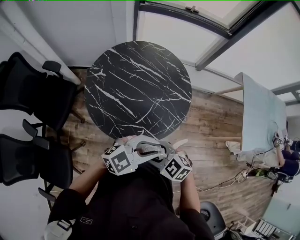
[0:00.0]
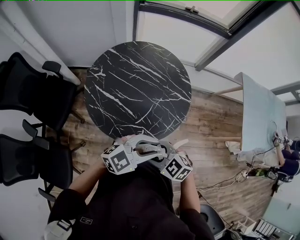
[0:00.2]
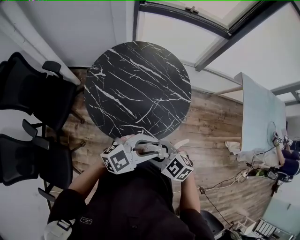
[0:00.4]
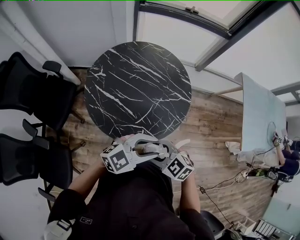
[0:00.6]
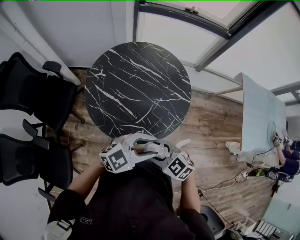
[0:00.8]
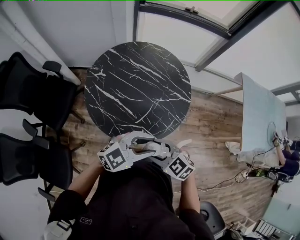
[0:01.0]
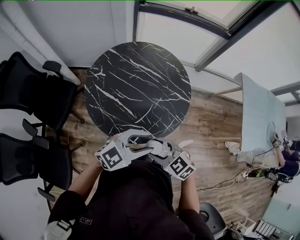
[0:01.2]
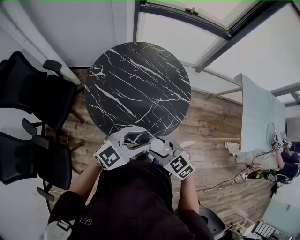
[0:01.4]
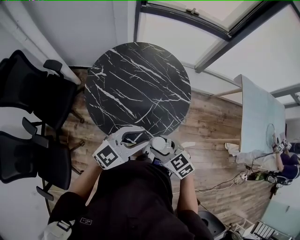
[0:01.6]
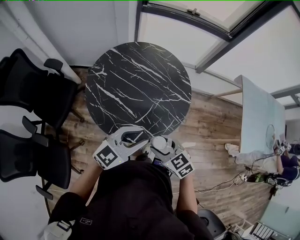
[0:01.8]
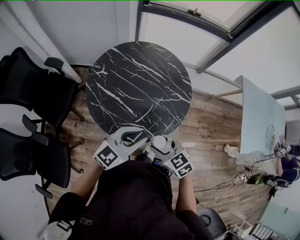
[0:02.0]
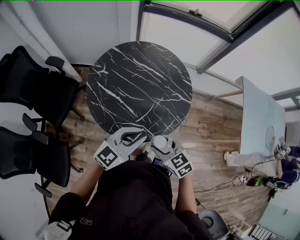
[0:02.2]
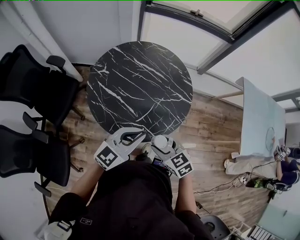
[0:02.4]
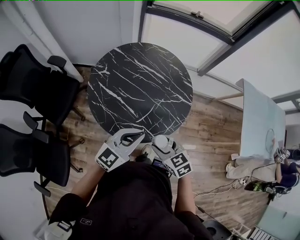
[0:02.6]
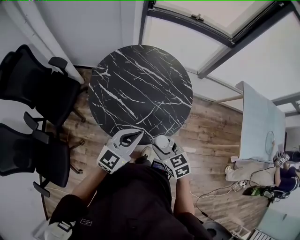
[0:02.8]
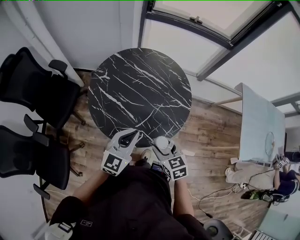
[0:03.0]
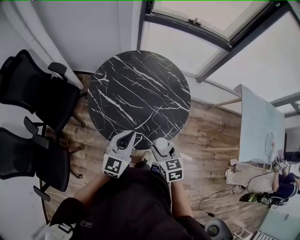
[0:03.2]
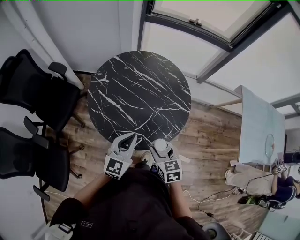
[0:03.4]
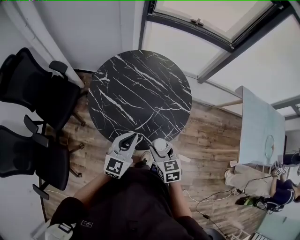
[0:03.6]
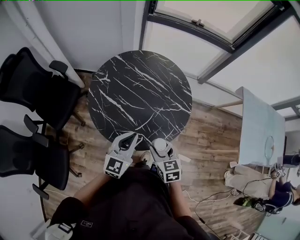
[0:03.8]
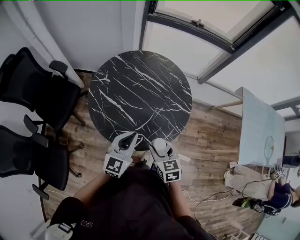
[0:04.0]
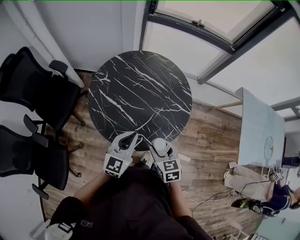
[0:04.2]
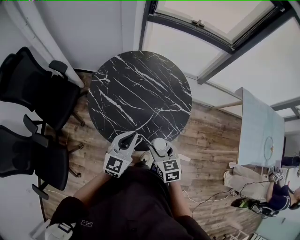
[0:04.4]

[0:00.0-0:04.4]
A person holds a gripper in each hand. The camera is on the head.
0:00.0 to 0:01.4: The left gripper moves some 5 cm.
0:01.4 to 0:03.0: The left gripper changes place by about 5 cm, rotates roughly 30 degrees, and closes; the right gripper swivels roughly 20 degrees.
0:03.0 to 0:04.4: The grippers move only a little.

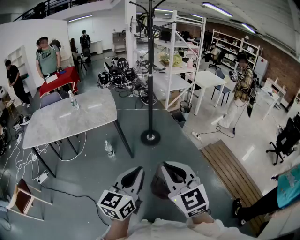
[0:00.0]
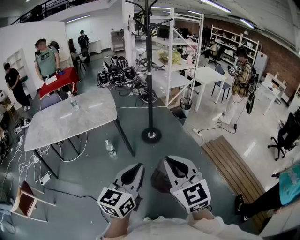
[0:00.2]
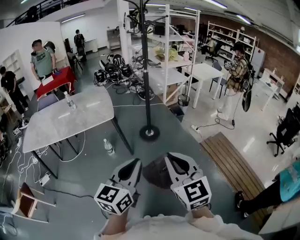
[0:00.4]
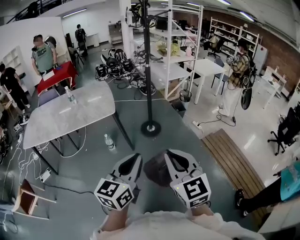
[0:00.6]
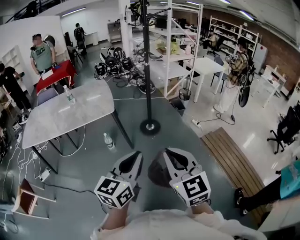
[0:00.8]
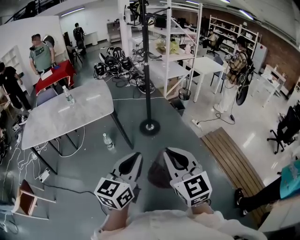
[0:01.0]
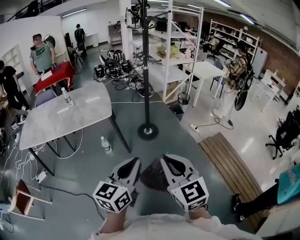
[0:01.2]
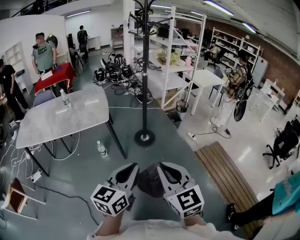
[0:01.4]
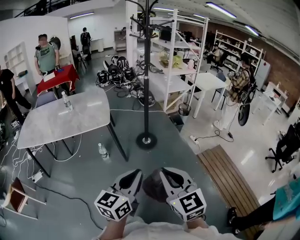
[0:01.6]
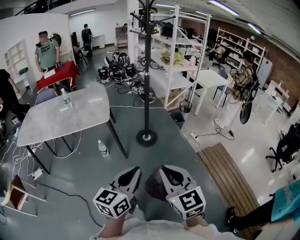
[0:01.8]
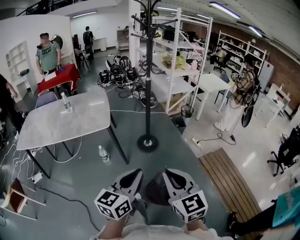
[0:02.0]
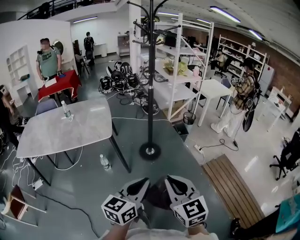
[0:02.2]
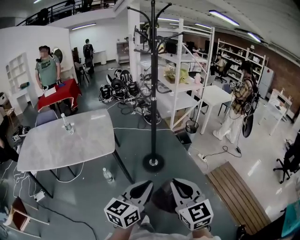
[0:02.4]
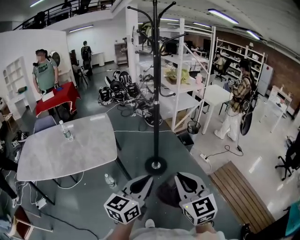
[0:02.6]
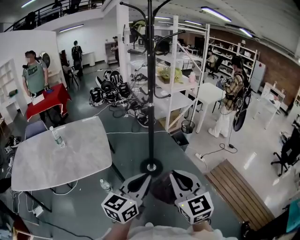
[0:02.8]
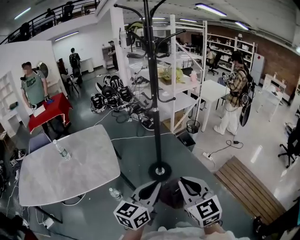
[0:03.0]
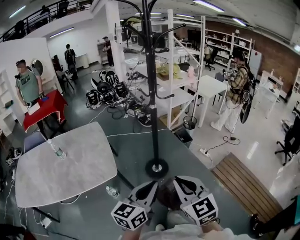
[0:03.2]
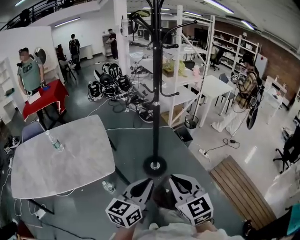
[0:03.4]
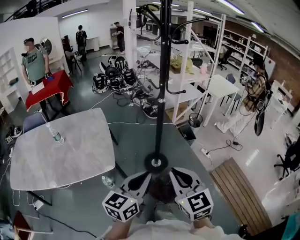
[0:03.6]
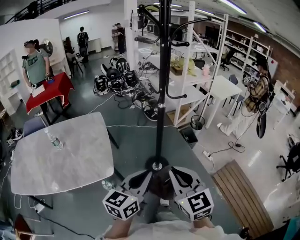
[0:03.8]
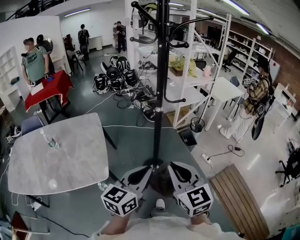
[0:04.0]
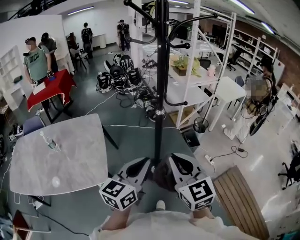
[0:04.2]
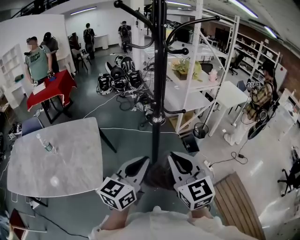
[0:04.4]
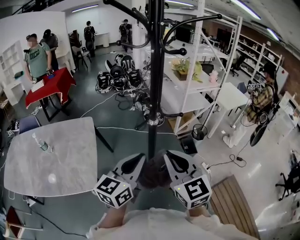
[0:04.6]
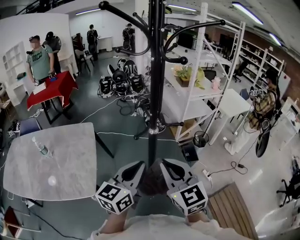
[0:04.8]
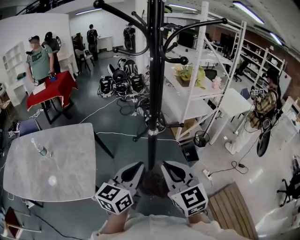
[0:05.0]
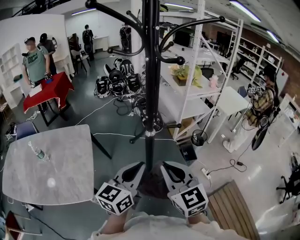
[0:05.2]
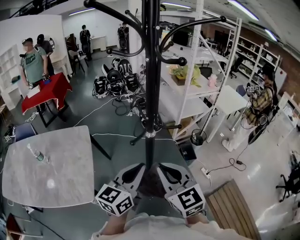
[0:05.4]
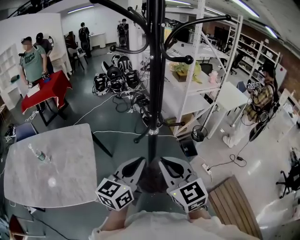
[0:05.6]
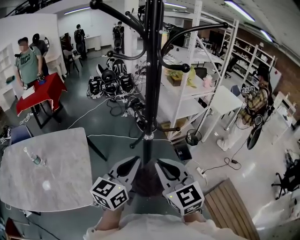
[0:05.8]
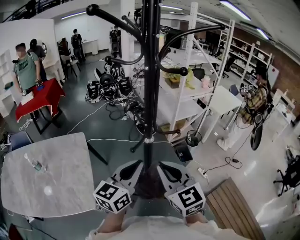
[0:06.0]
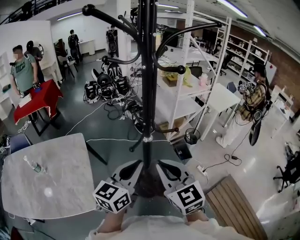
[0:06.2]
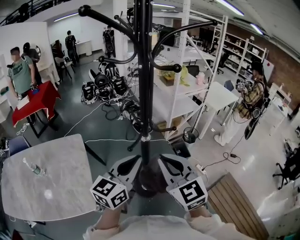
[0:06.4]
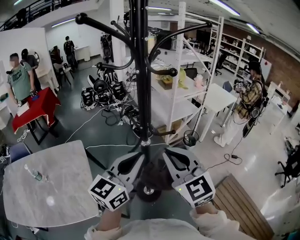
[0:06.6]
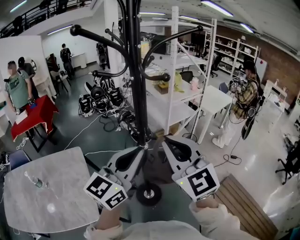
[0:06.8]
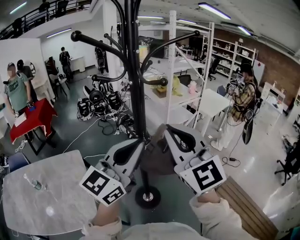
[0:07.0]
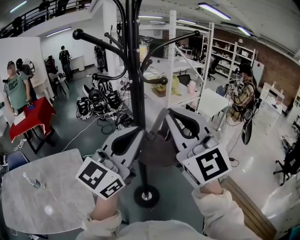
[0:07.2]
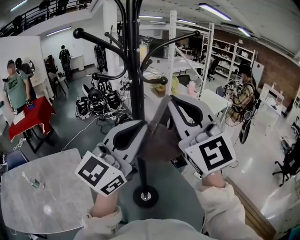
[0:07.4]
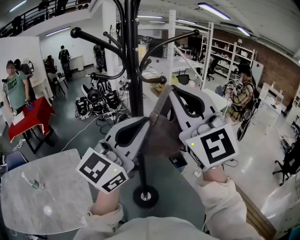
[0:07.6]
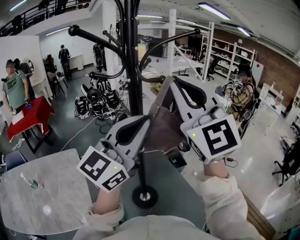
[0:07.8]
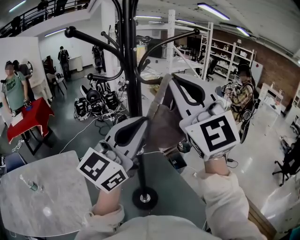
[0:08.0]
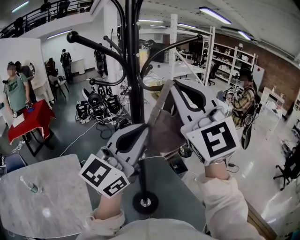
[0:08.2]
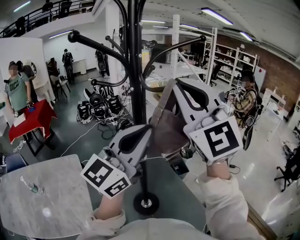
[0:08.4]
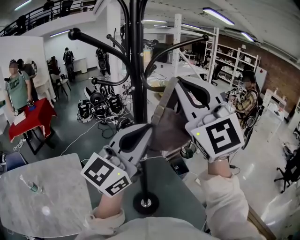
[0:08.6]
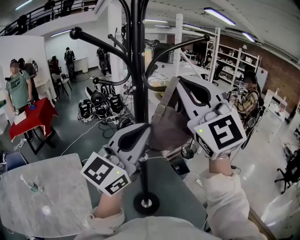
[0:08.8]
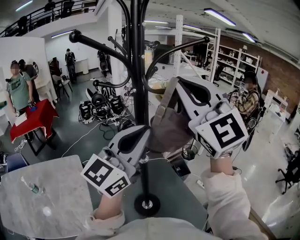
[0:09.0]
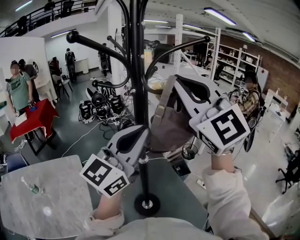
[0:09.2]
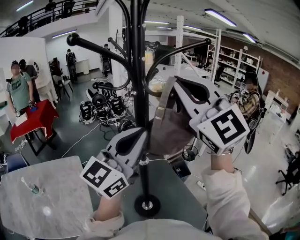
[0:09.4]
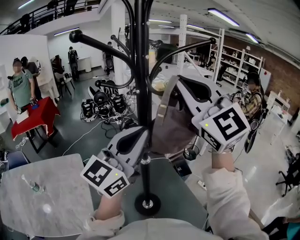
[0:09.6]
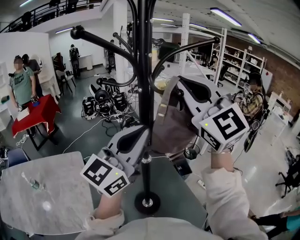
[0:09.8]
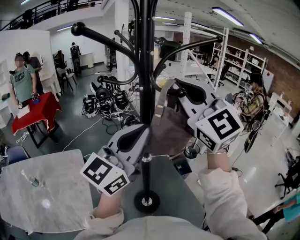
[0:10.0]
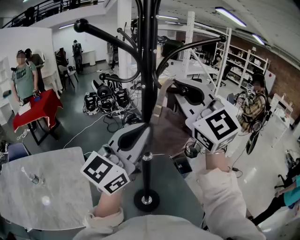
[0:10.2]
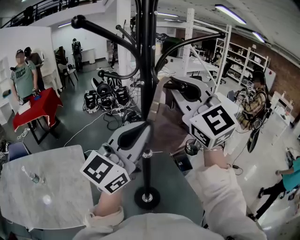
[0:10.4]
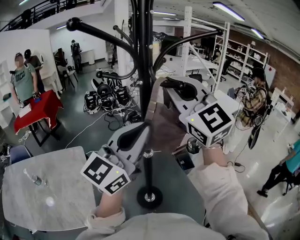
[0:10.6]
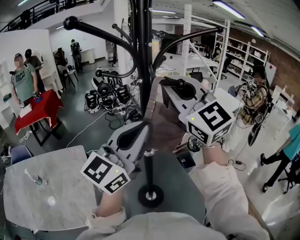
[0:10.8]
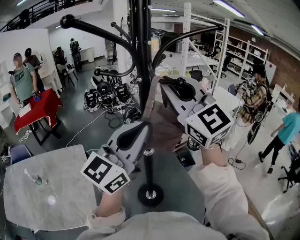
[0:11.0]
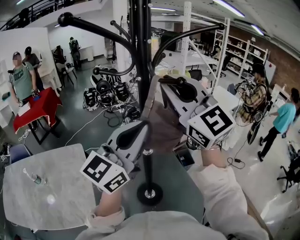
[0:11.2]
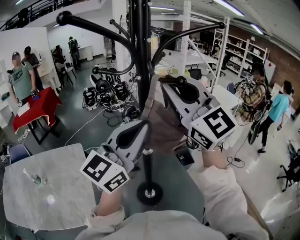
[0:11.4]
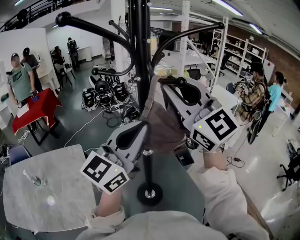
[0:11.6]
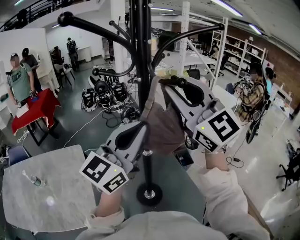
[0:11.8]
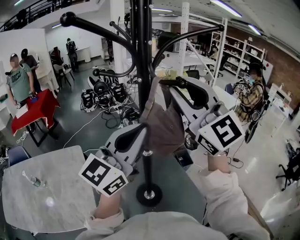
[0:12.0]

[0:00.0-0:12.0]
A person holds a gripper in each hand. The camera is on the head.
0:00.0 to 0:01.6: The grippers both shift forward and to the right by some 10 cm.
0:01.6 to 0:03.0: The two grippers go approximately 35 cm forward.
0:03.0 to 0:04.4: Both grippers move forward, roughly 30 cm.
0:04.4 to 0:06.0: Both grippers move forward, approximately 10 cm.
0:06.0 to 0:07.6: Both grippers move upward, some 25 cm. The right gripper swivels about 40 degrees, while the left gripper rotates about 30 degrees.
0:07.6 to 0:09.0: The right gripper is displaced forward by roughly 5 cm. The left gripper ends up approximately 5 cm from where it was.
0:09.0 to 0:10.4: The right gripper shifts by roughly 5 cm.
0:10.4 to 0:12.0: The grippers move only a little.

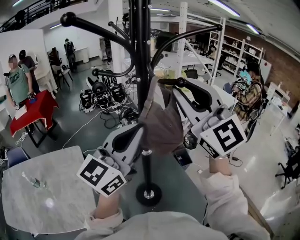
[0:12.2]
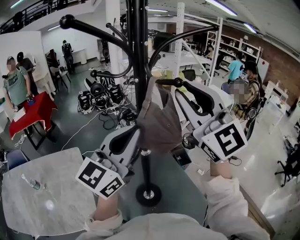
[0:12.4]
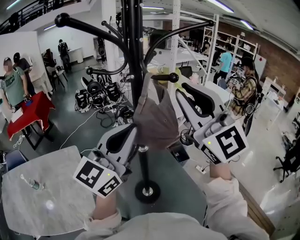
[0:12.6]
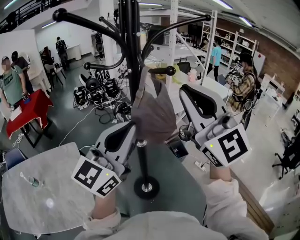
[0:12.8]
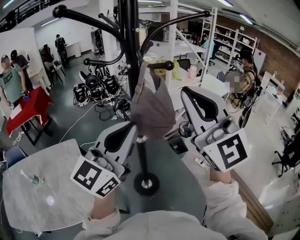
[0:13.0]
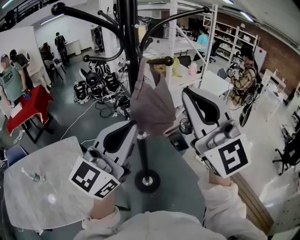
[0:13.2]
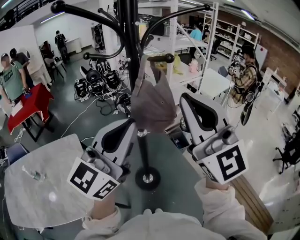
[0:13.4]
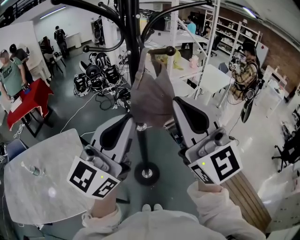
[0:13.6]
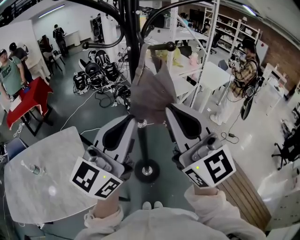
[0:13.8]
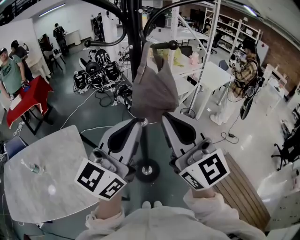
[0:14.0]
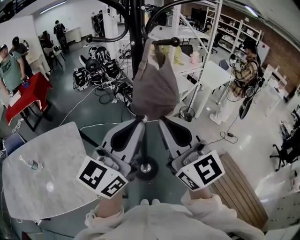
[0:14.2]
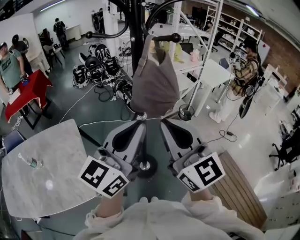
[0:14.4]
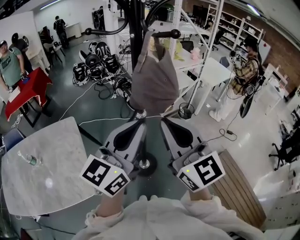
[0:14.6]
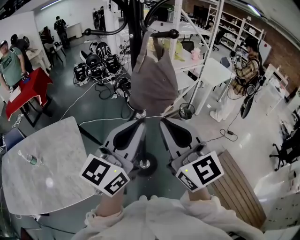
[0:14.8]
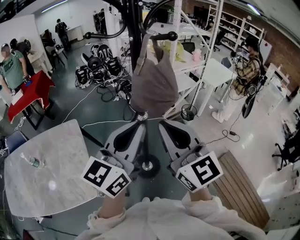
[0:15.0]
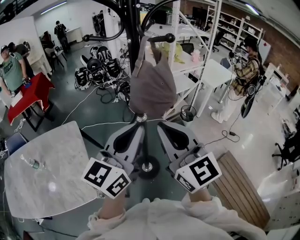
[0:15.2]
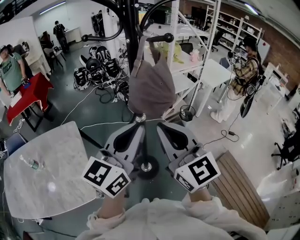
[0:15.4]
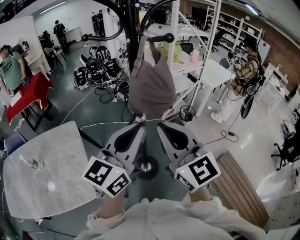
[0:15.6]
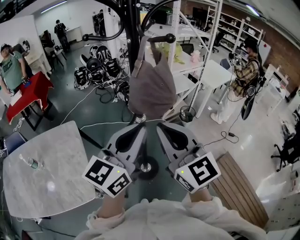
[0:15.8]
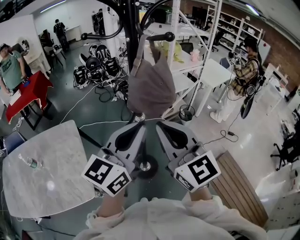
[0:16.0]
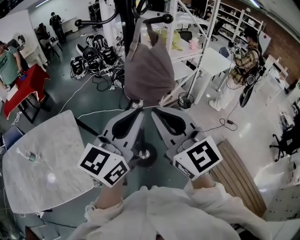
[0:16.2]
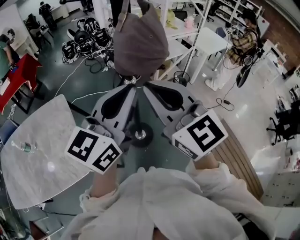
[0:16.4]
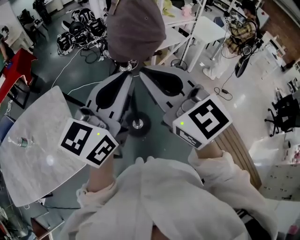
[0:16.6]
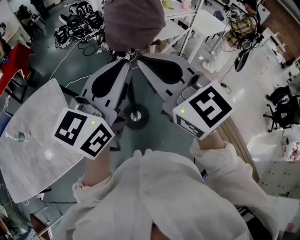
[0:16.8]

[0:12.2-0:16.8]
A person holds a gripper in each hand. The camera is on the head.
0:12.2 to 0:13.8: The right gripper heads backward and downward, covering approximately 15 cm, and swivels some 20 degrees, while the left gripper goes about 5 cm backward.
0:13.8 to 0:15.2: The grippers both shift downward by roughly 5 cm.
0:15.2 to 0:16.8: There are only small adjustments of the grippers.

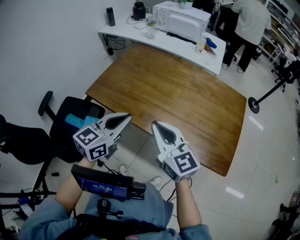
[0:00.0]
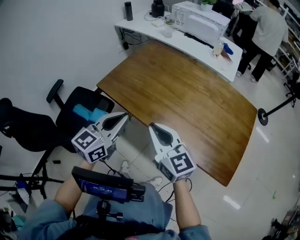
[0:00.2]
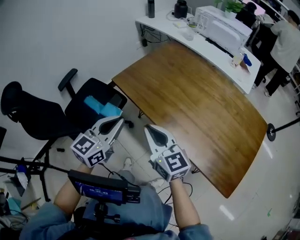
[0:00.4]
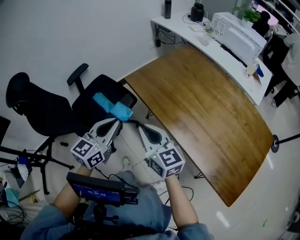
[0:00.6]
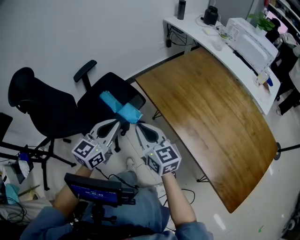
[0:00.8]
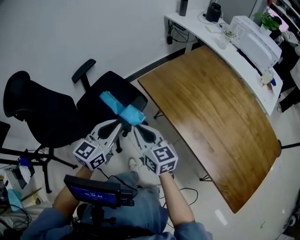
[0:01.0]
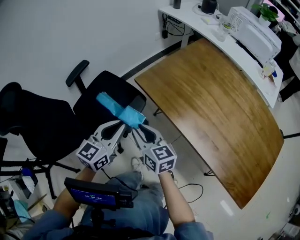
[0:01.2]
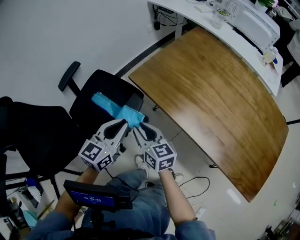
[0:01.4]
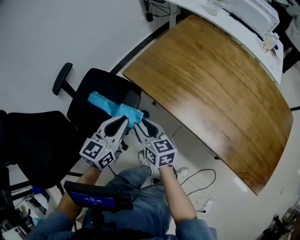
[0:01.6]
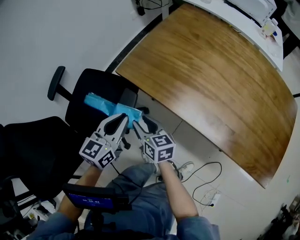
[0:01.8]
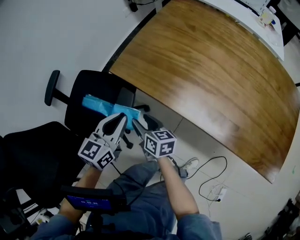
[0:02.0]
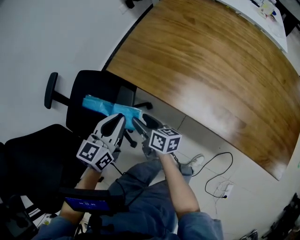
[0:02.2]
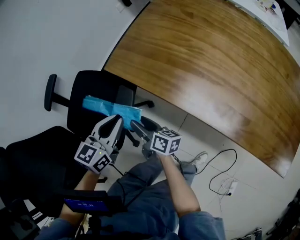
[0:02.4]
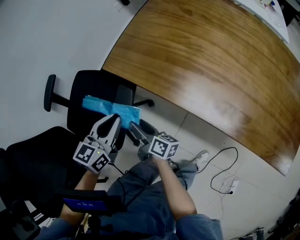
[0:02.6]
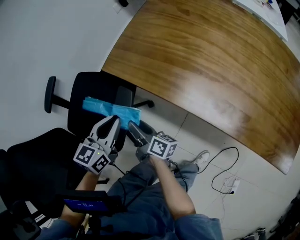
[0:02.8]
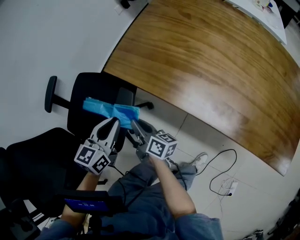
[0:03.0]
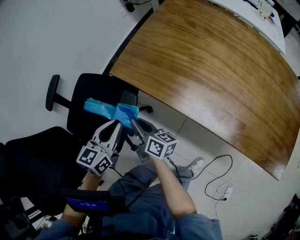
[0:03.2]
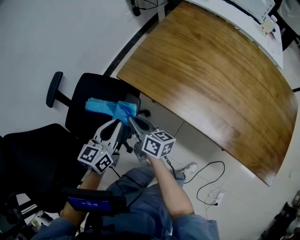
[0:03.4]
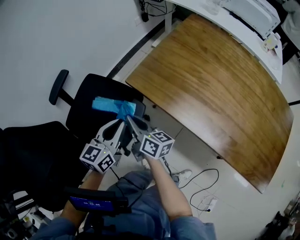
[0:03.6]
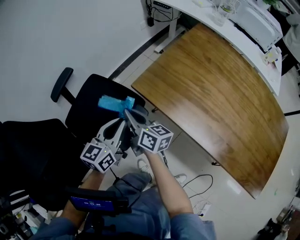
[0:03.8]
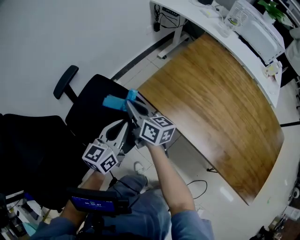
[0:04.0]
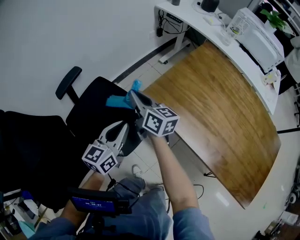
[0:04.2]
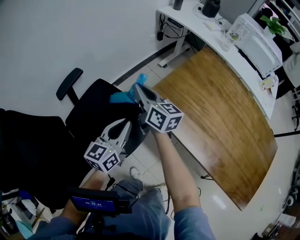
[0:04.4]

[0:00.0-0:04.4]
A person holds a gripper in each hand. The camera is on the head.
0:00.0 to 0:01.4: The right gripper shifts by about 40 cm, swivels some 30 degrees, and opens up. The left gripper ends up about 30 cm from where it was, and turns by about 20 degrees.
0:01.4 to 0:03.0: Both grippers move downward, some 10 cm. The right gripper turns by about 40 degrees, and closes up.
0:03.0 to 0:04.4: The right gripper heads upward and forward, covering about 30 cm, and rotates approximately 40 degrees. Meanwhile the left gripper shifts some 10 cm upward and forward, and rotates roughly 20 degrees.
